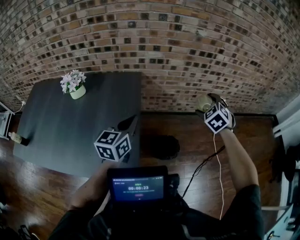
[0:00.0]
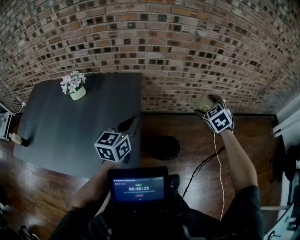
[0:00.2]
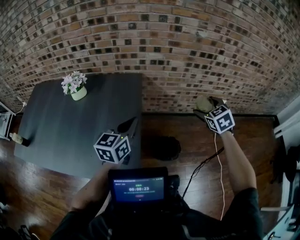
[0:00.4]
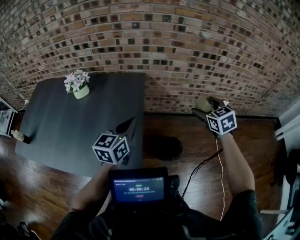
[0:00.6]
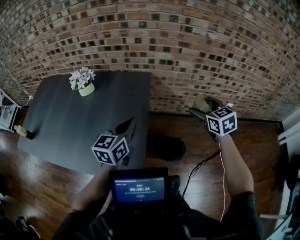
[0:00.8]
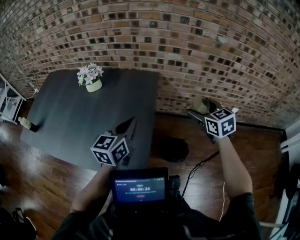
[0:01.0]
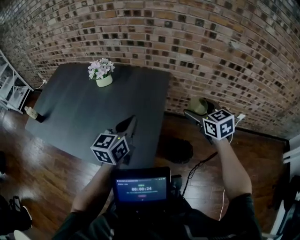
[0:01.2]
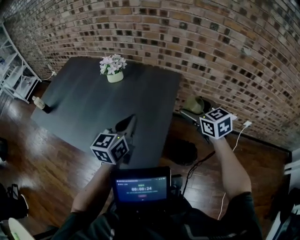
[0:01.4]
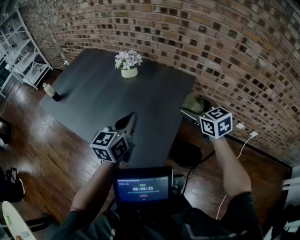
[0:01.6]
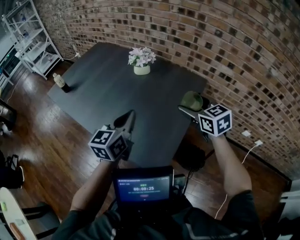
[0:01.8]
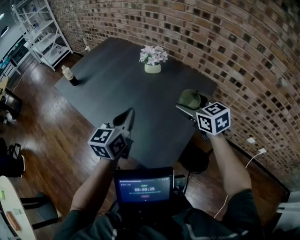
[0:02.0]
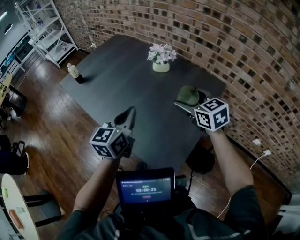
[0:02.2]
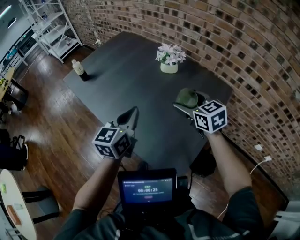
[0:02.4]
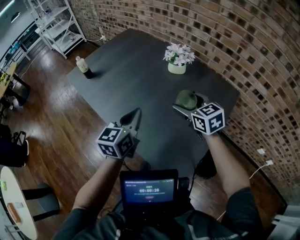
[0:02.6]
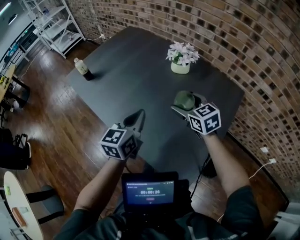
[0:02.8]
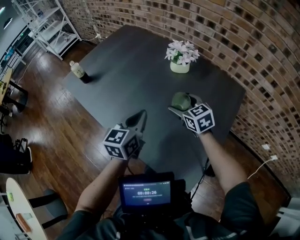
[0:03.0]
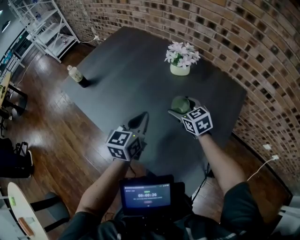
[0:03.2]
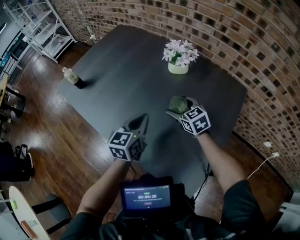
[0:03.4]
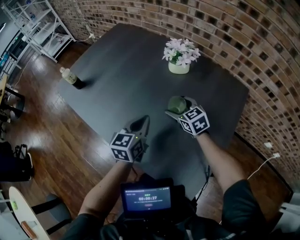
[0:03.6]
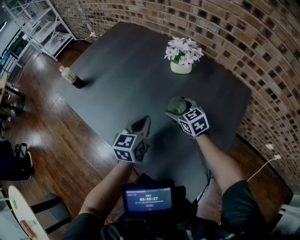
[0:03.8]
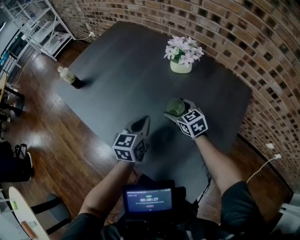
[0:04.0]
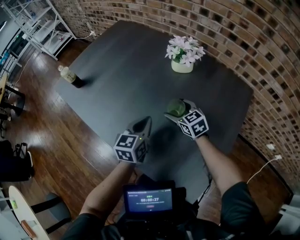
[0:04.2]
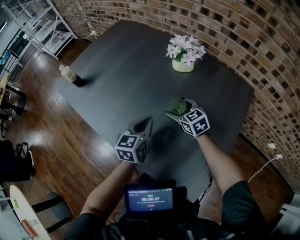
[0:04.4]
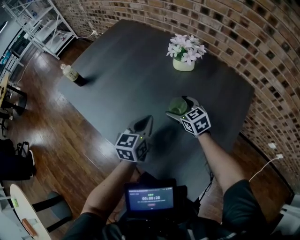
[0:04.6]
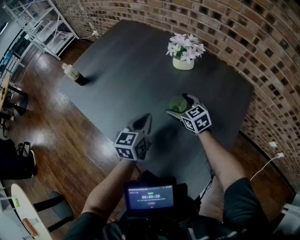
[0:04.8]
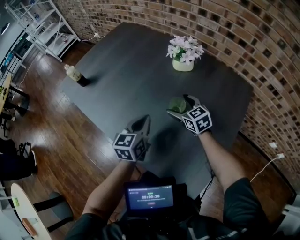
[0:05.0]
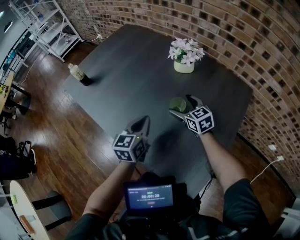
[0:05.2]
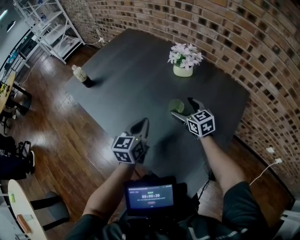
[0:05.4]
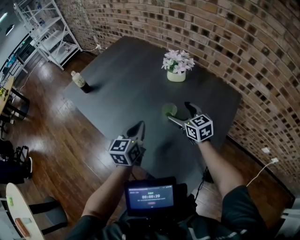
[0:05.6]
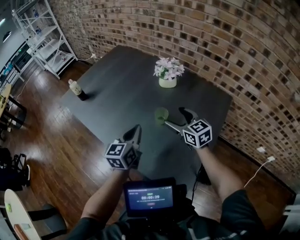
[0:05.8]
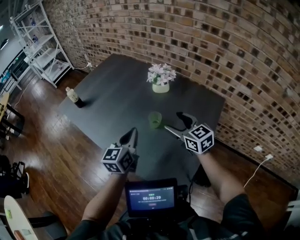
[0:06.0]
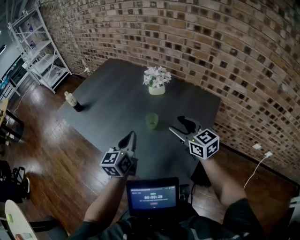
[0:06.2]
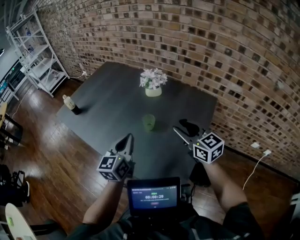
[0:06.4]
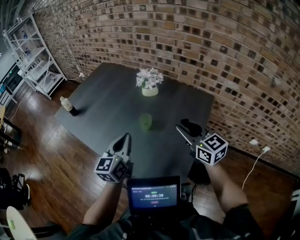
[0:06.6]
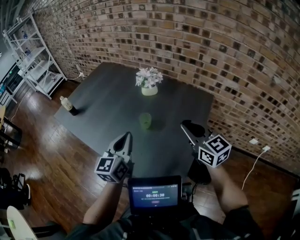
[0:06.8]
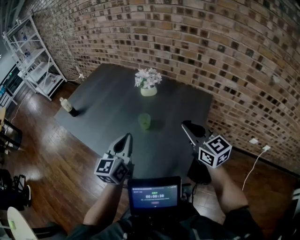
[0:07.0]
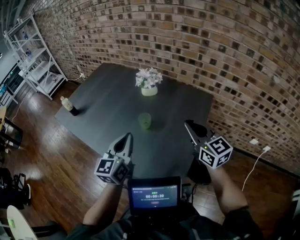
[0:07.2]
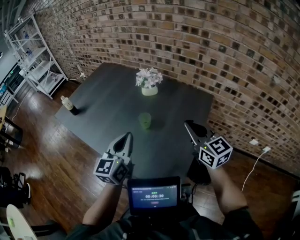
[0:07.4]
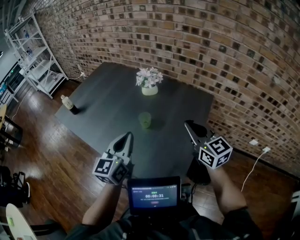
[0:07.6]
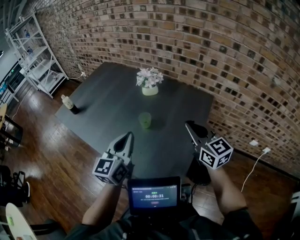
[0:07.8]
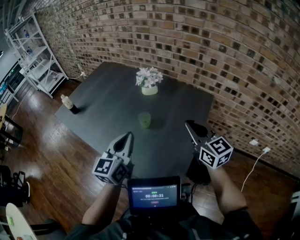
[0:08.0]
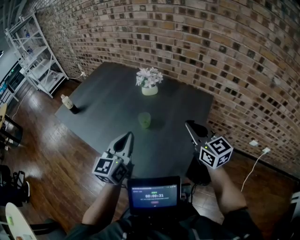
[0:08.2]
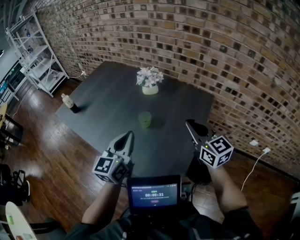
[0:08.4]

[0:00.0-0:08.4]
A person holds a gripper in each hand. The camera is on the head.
0:00.0 to 0:01.4: The left gripper moves roughly 15 cm. Meanwhile the right gripper ends up roughly 25 cm from where it was, and rotates roughly 50 degrees.
0:01.4 to 0:02.8: The two grippers go roughly 30 cm to the left and forward. The left gripper turns by some 20 degrees; the right gripper changes its angle by about 20 degrees.
0:02.8 to 0:04.2: Both grippers move downward and forward, about 15 cm.
0:04.2 to 0:05.6: Both grippers move upward and backward, roughly 10 cm.
0:05.6 to 0:07.0: The left gripper shifts some 15 cm upward, backward and to the right, while the right gripper goes about 30 cm upward, backward and to the right, and closes up.
0:07.0 to 0:08.4: The grippers stay close to where they were, moving slightly.

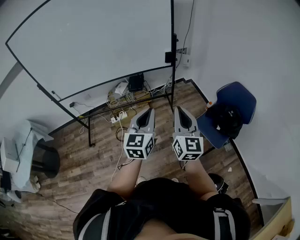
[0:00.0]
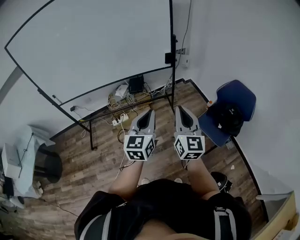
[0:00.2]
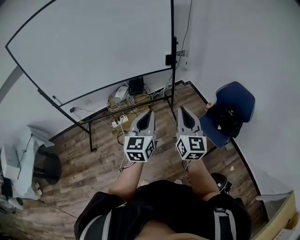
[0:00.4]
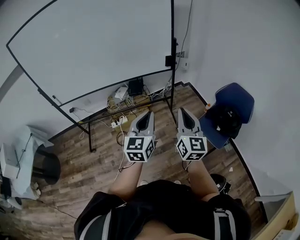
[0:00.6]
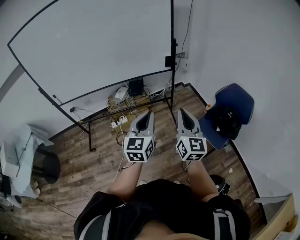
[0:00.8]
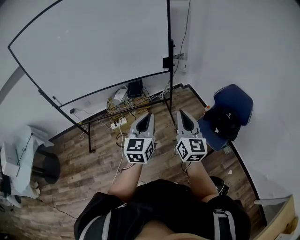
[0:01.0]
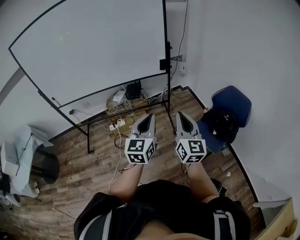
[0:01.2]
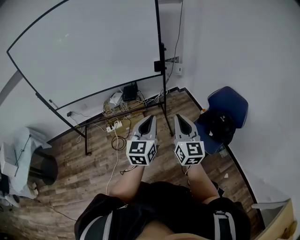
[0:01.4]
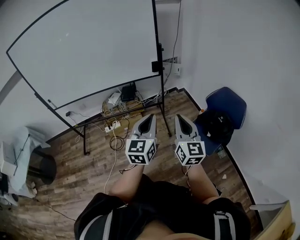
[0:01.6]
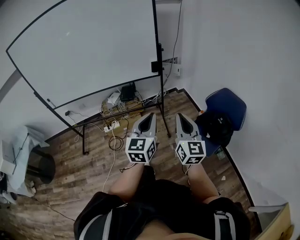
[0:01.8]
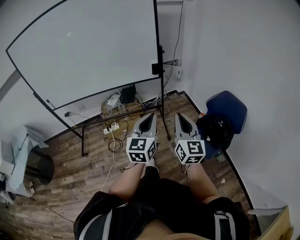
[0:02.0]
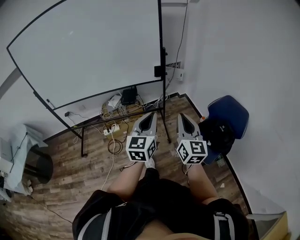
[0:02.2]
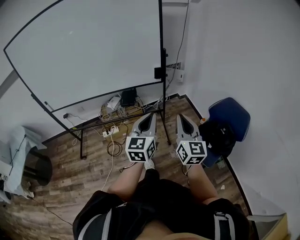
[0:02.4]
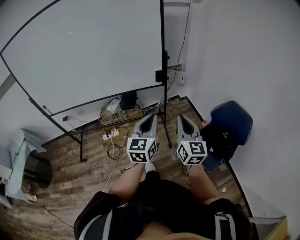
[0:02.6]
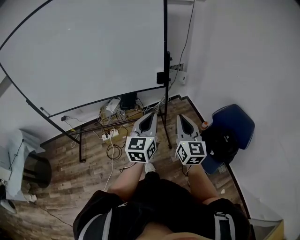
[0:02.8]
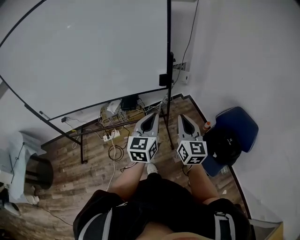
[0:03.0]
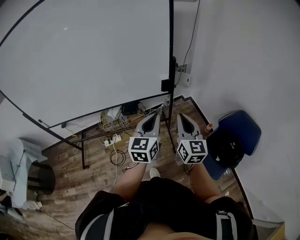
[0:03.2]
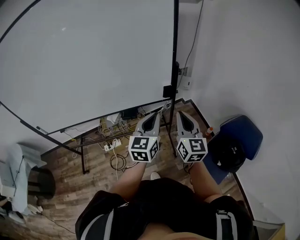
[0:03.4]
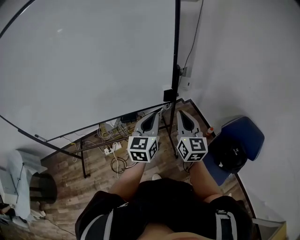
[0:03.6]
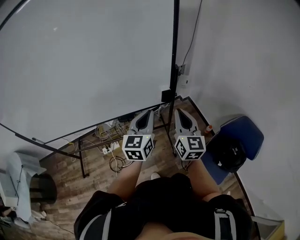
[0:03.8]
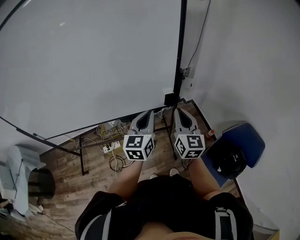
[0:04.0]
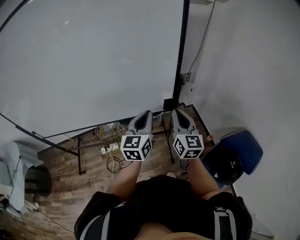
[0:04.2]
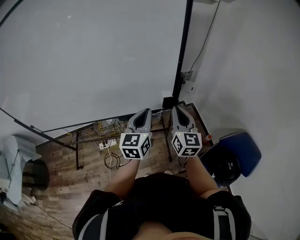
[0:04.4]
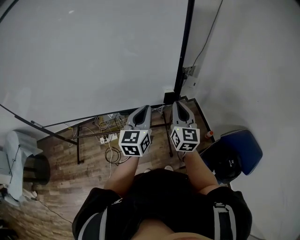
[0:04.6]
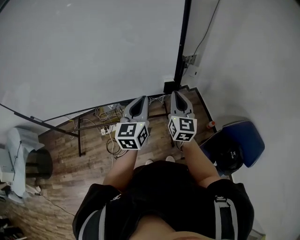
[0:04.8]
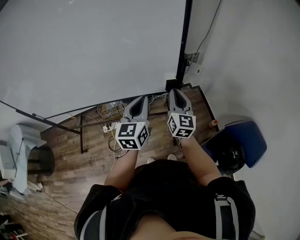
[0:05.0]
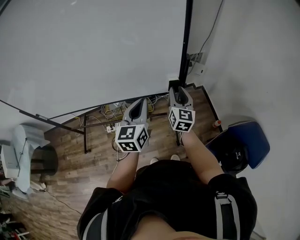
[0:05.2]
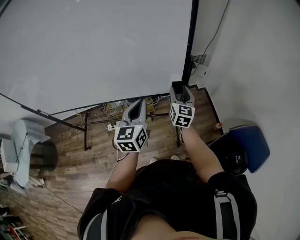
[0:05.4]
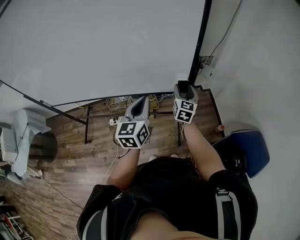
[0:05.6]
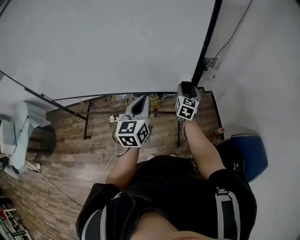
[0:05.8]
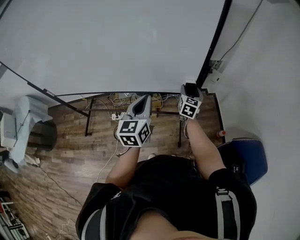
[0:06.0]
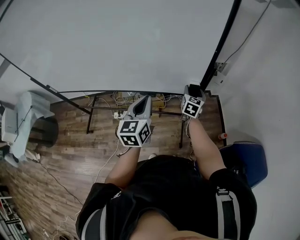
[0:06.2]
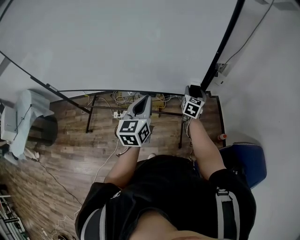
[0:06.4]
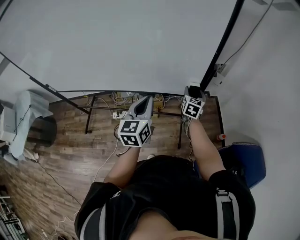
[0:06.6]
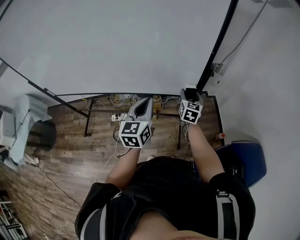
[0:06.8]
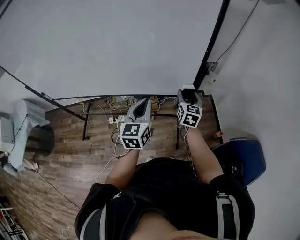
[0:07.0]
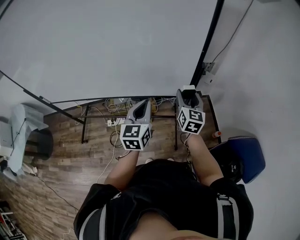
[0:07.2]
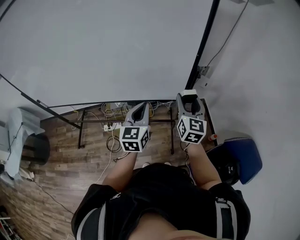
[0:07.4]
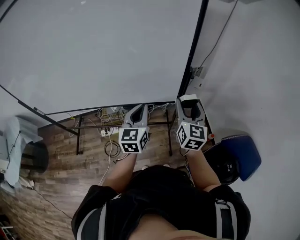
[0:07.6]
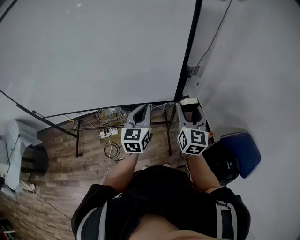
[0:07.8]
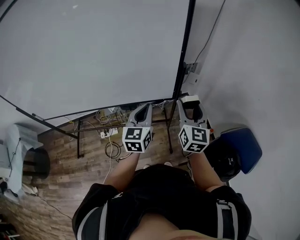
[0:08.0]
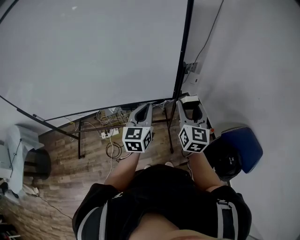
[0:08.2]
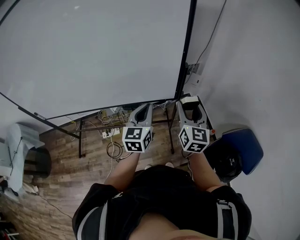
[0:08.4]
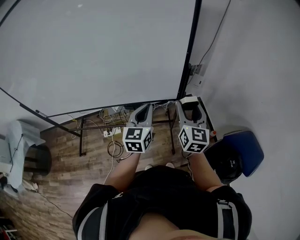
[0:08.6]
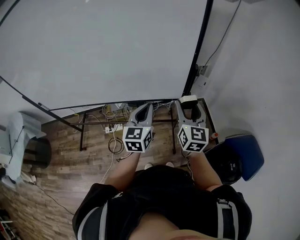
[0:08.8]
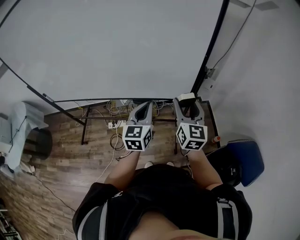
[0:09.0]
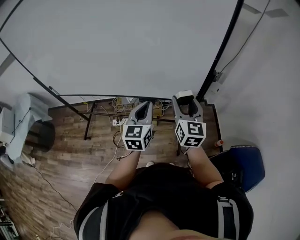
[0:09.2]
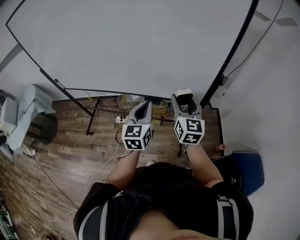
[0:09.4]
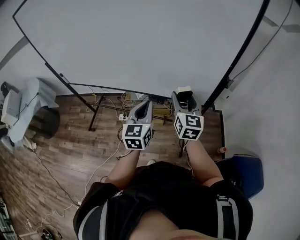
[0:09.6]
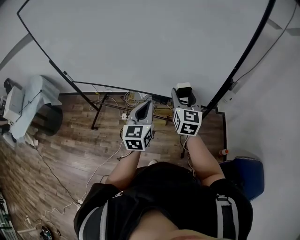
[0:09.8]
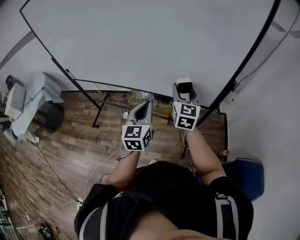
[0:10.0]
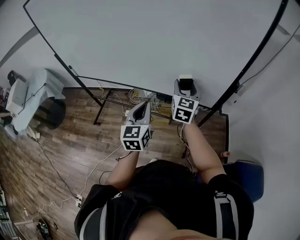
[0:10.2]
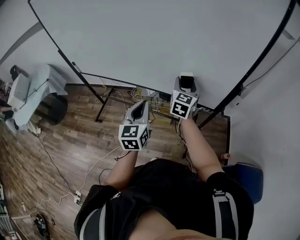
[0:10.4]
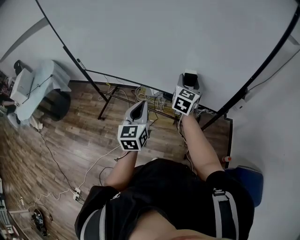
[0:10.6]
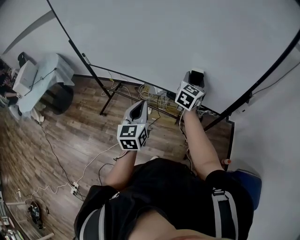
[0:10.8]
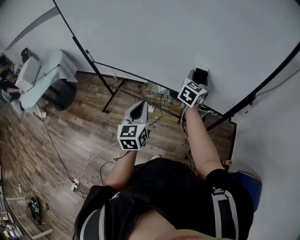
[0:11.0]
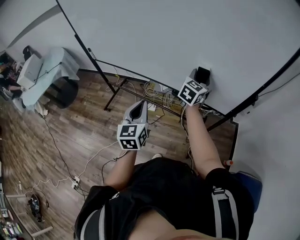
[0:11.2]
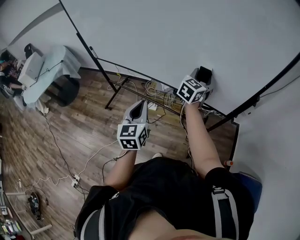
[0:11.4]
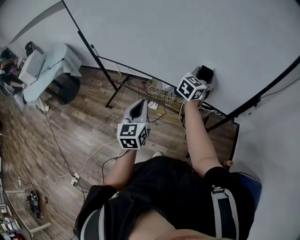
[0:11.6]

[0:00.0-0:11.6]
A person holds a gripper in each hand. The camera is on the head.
0:00.0 to 0:01.4: Both grippers move to the right, roughly 10 cm.
0:01.4 to 0:02.8: The two grippers go about 20 cm forward.
0:02.8 to 0:04.4: The grippers both shift forward by about 30 cm.
0:04.4 to 0:05.8: The right gripper moves downward and forward, about 20 cm, and opens up, while the left gripper moves to the left, about 5 cm.
0:05.8 to 0:07.2: The right gripper heads upward and backward, covering roughly 10 cm.
0:07.2 to 0:08.8: The right gripper is displaced backward and upward by approximately 10 cm.
0:08.8 to 0:10.2: The left gripper shifts roughly 15 cm to the left, and turns by some 20 degrees. Meanwhile the right gripper travels to the left and forward by some 20 cm.
0:10.2 to 0:11.6: The left gripper travels to the left by roughly 10 cm. The right gripper travels forward by roughly 5 cm.

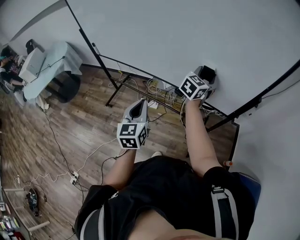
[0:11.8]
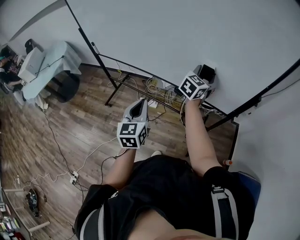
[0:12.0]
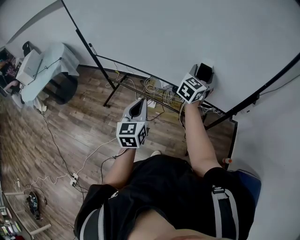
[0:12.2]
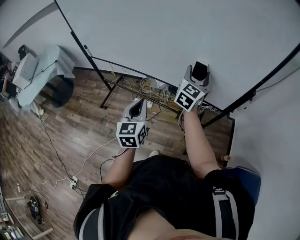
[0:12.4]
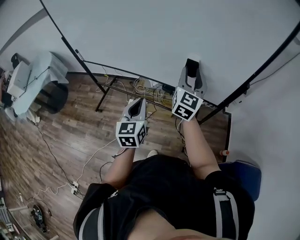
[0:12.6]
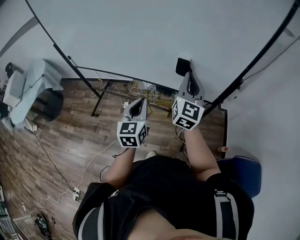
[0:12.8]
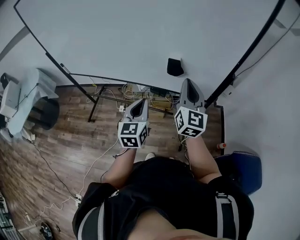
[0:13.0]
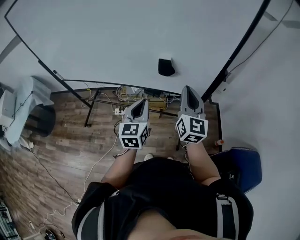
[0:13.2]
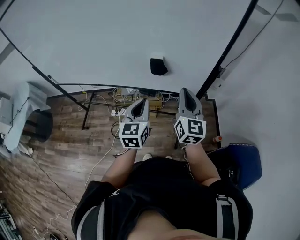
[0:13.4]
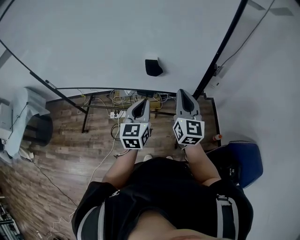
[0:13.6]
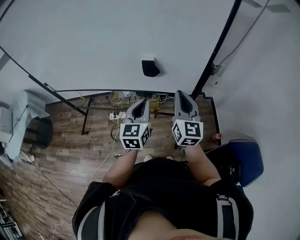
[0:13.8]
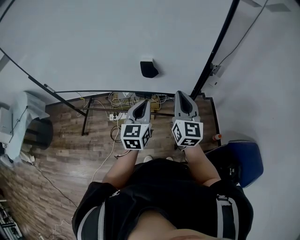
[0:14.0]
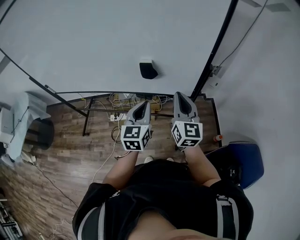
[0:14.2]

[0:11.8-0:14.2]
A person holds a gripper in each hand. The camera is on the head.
0:11.8 to 0:13.0: The right gripper shifts about 15 cm backward and upward, changes its angle by some 30 degrees, and closes; the left gripper shifts approximately 10 cm to the right.
0:13.0 to 0:14.2: The grippers both shift to the right by roughly 10 cm.

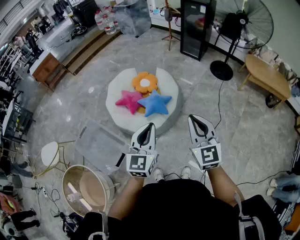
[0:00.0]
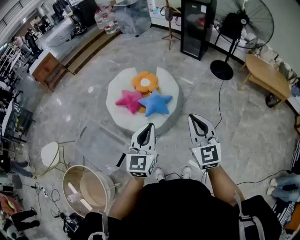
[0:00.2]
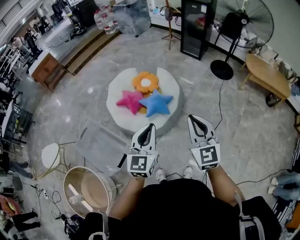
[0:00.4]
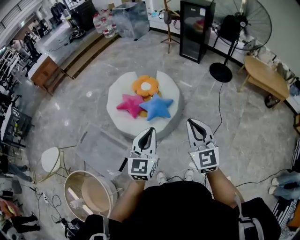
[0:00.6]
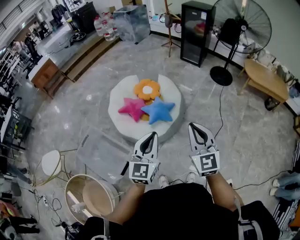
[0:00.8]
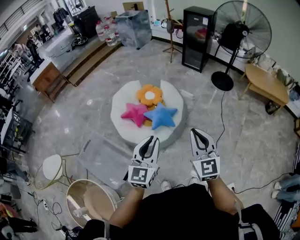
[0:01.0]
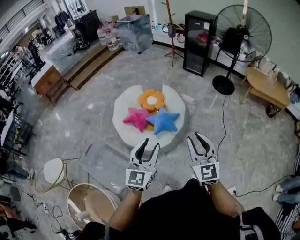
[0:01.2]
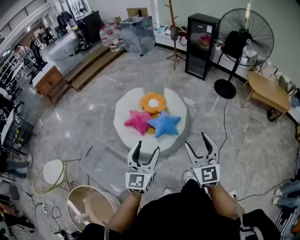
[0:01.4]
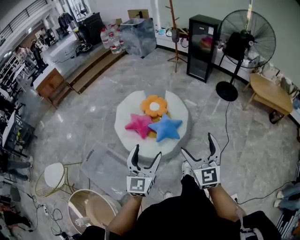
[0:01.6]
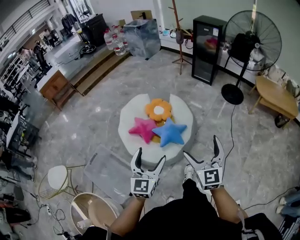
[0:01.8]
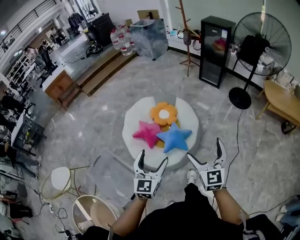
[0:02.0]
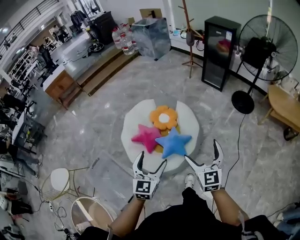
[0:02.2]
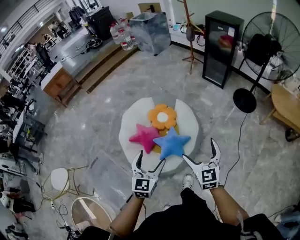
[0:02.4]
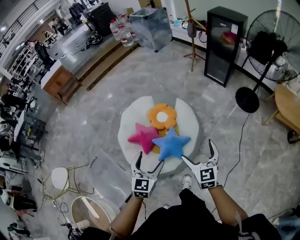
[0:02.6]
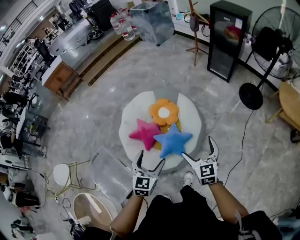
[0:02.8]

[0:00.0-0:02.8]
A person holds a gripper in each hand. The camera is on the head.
0:00.0 to 0:01.4: Both grippers move to the left, some 15 cm. The right gripper opens up. The left gripper opens.
0:01.4 to 0:02.8: Both grippers travel together forward, roughly 40 cm. The left gripper rotates about 20 degrees. The right gripper swivels approximately 20 degrees, and opens up.
